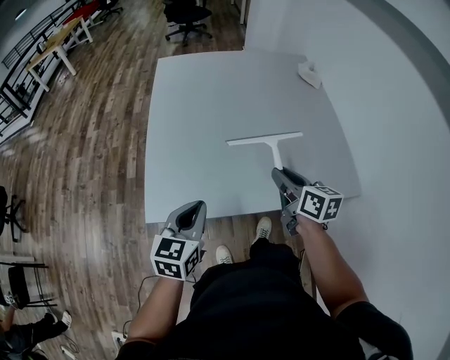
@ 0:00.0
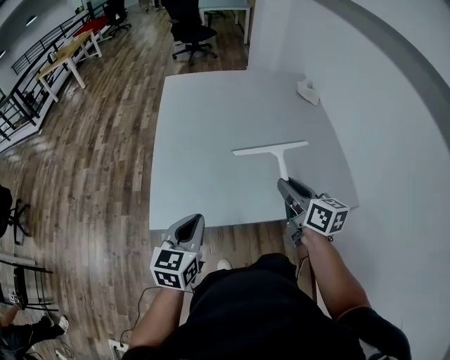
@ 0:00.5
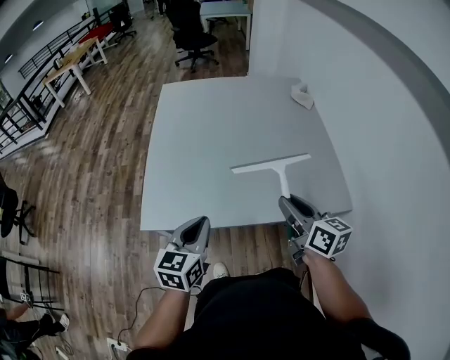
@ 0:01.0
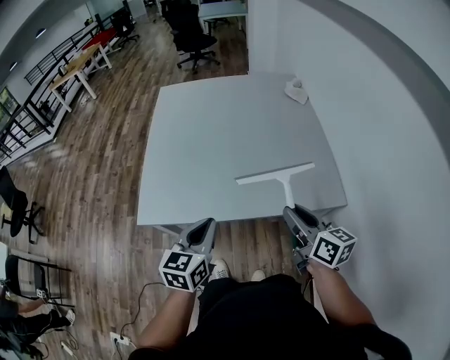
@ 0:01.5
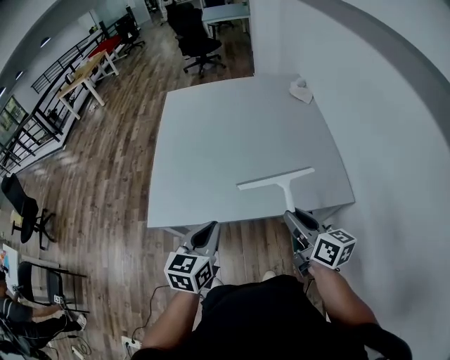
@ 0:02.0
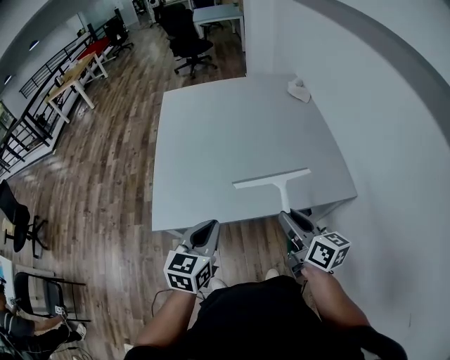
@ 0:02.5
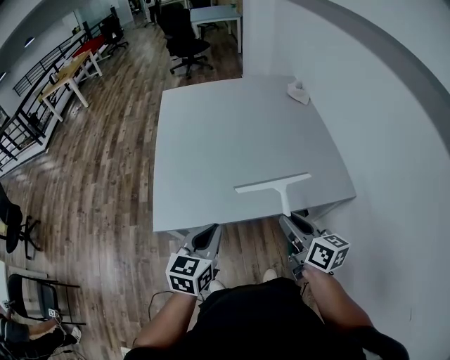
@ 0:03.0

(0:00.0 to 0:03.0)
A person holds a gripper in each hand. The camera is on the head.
0:00.0 - 0:01.5: The right gripper travels backward, to the right and upward by roughly 20 cm; the left gripper shifts about 15 cm to the right and backward.
0:01.5 - 0:03.0: The grippers both shift to the left by some 10 cm.

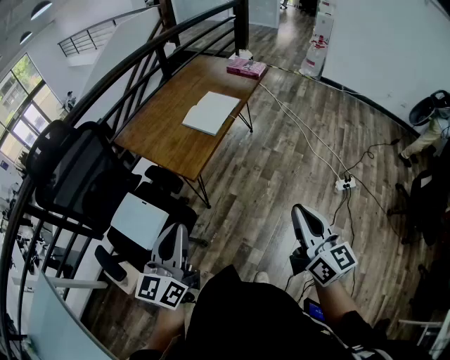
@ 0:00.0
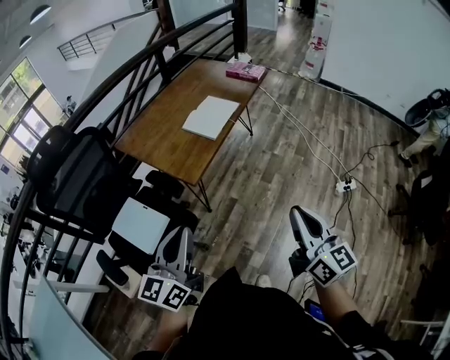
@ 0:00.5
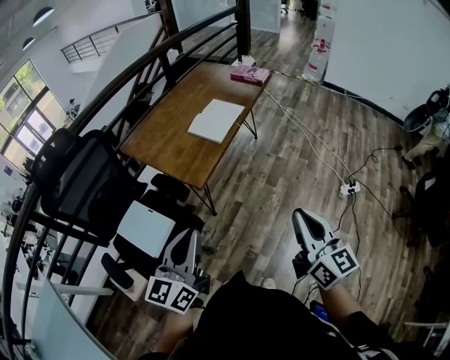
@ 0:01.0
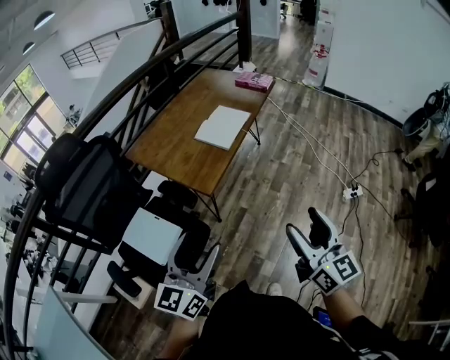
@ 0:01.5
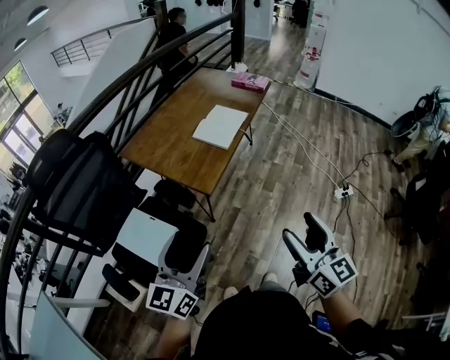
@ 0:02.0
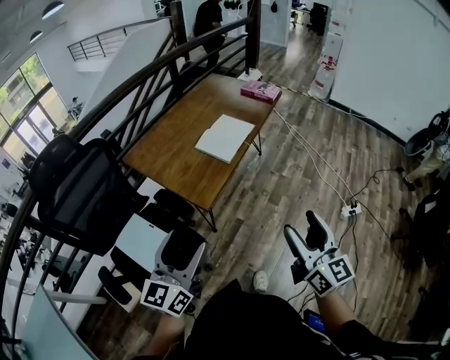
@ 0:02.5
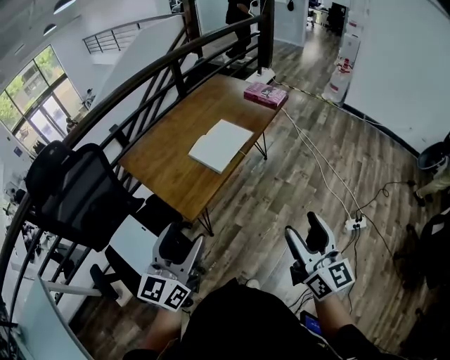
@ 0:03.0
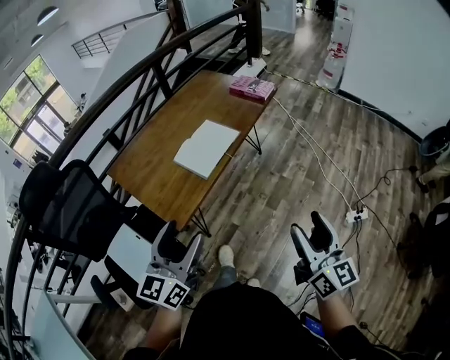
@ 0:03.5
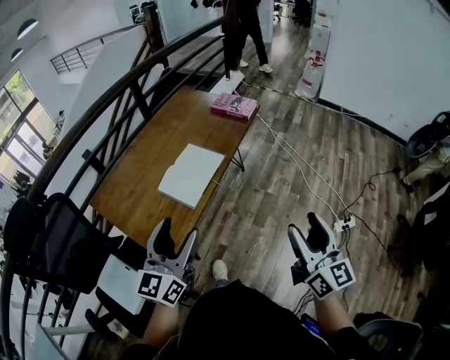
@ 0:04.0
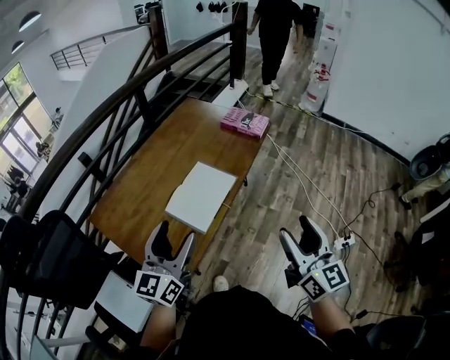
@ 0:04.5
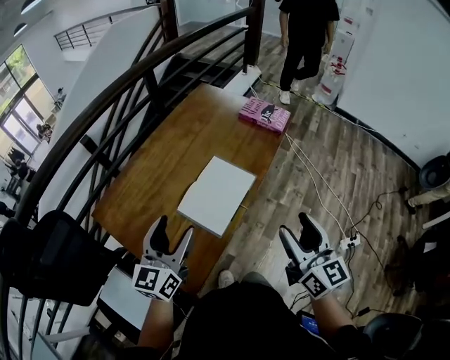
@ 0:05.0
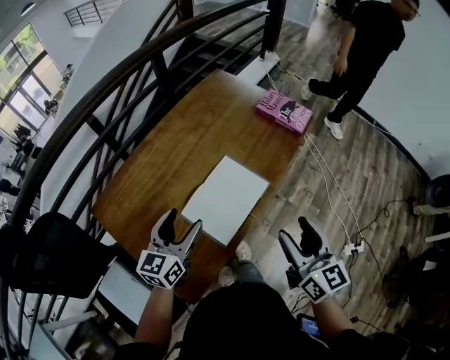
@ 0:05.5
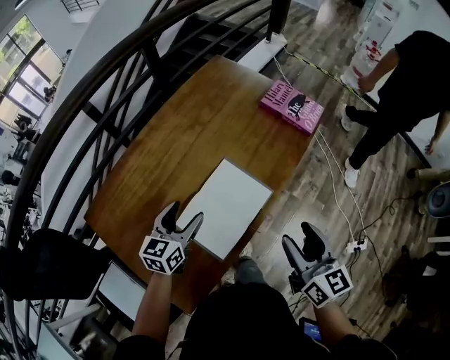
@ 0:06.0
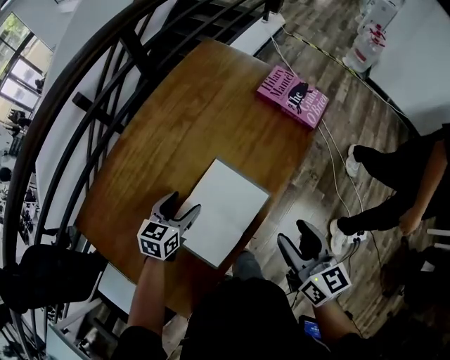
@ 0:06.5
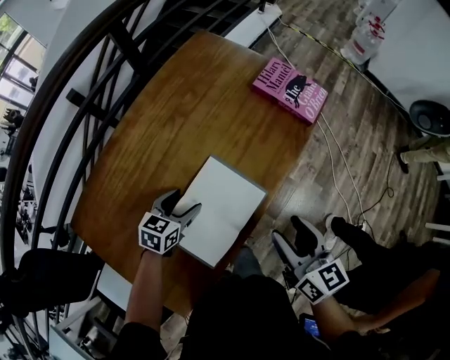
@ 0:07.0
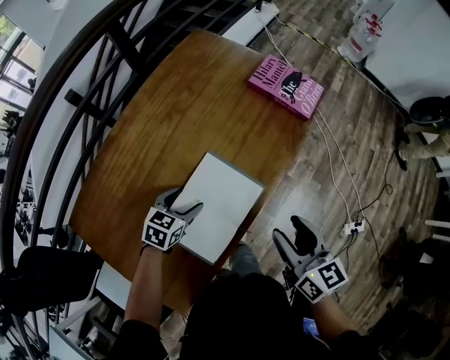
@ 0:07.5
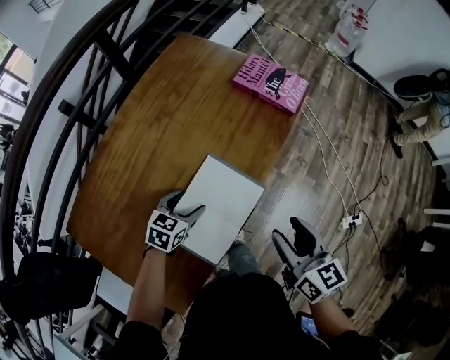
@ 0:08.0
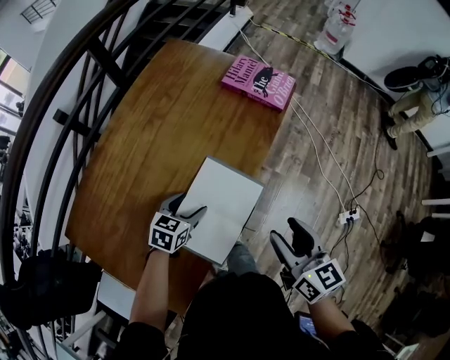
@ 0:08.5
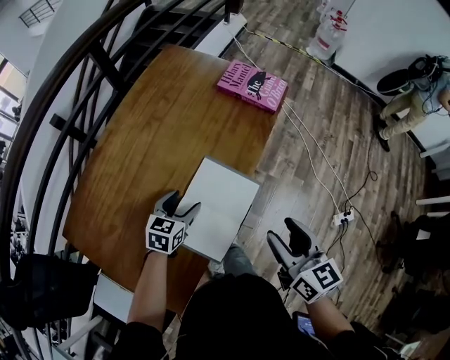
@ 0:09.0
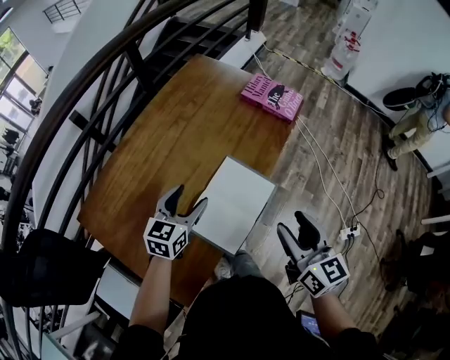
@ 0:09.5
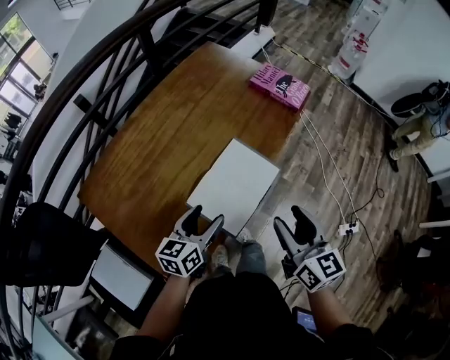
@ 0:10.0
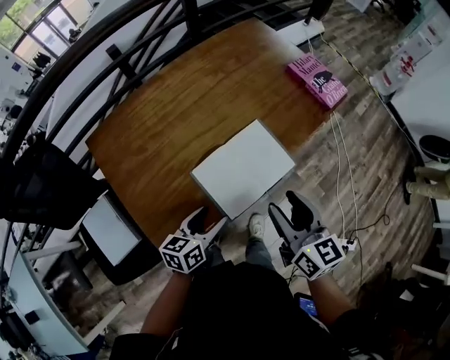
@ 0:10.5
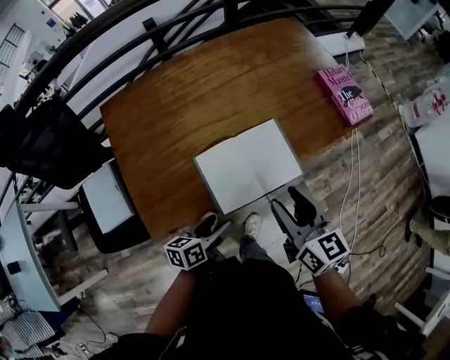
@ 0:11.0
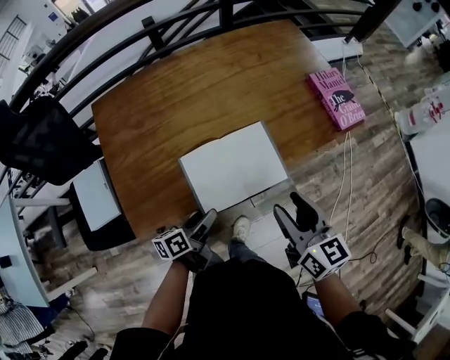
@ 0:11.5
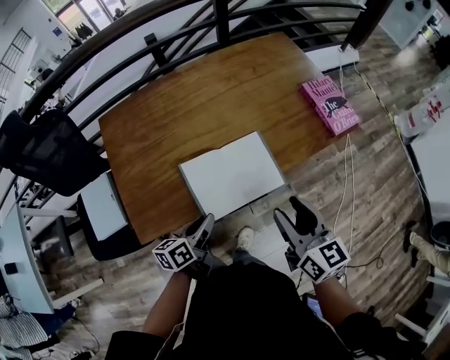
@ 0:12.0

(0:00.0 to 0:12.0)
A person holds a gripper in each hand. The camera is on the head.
0:00.0 - 0:02.0: The left gripper travels to the left by roughly 5 cm, and opens its fingers. Meanwhile the right gripper goes about 10 cm to the left, and opens.
0:02.0 - 0:04.0: The grippers both shift forward and to the right by roughly 35 cm.
0:04.0 - 0:06.0: The left gripper goes some 40 cm forward and downward, and rotates some 30 degrees, while the right gripper heads forward, to the left and downward, covering approximately 35 cm, and changes its angle by approximately 20 degrees.
0:06.0 - 0:08.0: The right gripper changes place by approximately 5 cm; the left gripper moves downward and to the right, roughly 15 cm, and swivels some 30 degrees.
0:08.0 - 0:10.0: The left gripper shifts approximately 20 cm backward and upward, and changes its angle by some 40 degrees, while the right gripper travels backward and upward by approximately 10 cm.
0:10.0 - 0:12.0: The right gripper ends up roughly 10 cm from where it was, and changes its angle by about 30 degrees, while the left gripper changes its angle by some 40 degrees, and closes up.

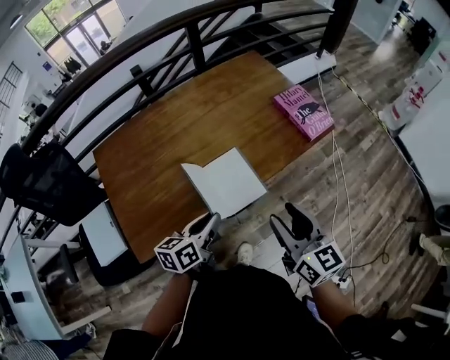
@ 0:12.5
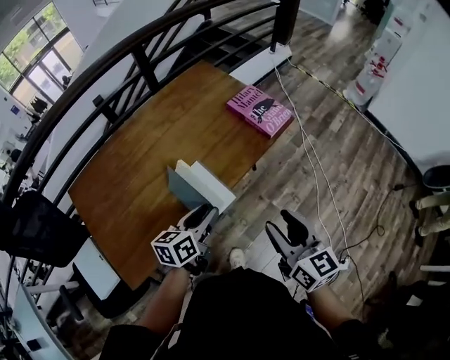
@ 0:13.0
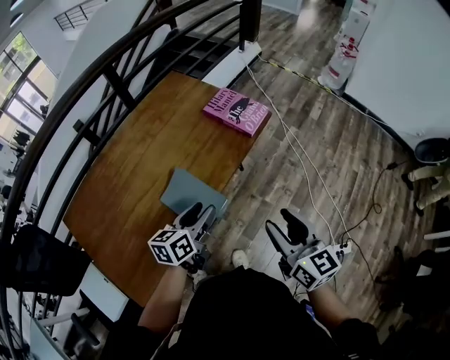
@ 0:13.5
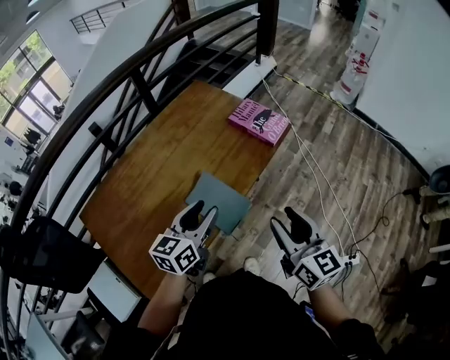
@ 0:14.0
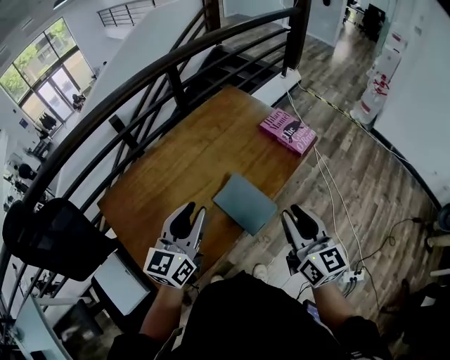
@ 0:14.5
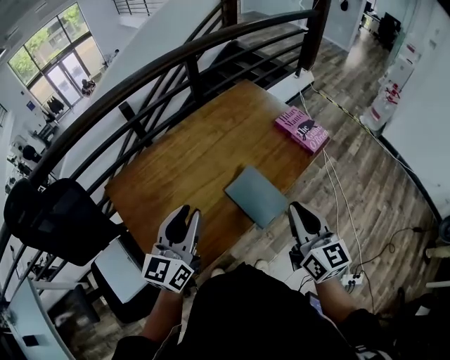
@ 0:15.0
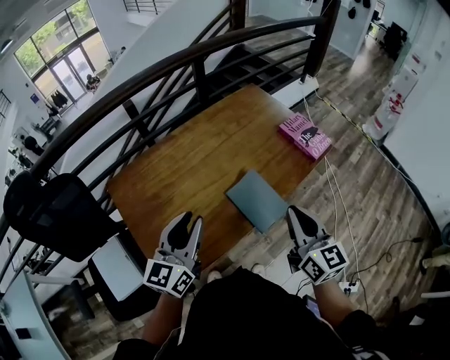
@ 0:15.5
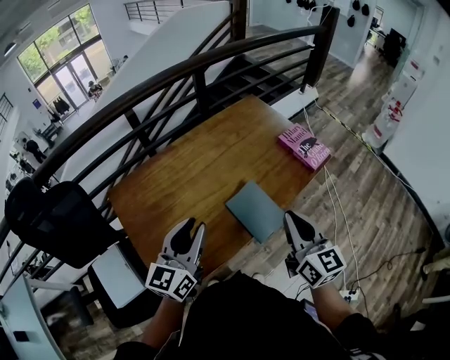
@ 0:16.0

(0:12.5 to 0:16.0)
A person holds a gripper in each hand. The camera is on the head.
0:12.5 - 0:14.5: The left gripper heads upward and to the left, covering some 20 cm, and turns by roughly 40 degrees, while the right gripper heads upward, covering about 5 cm, goes to the right and returns, approximately 10 cm each way, and swivels some 20 degrees.
0:14.5 - 0:16.0: The left gripper goes some 5 cm to the left. Meanwhile the right gripper shifts by approximately 5 cm.

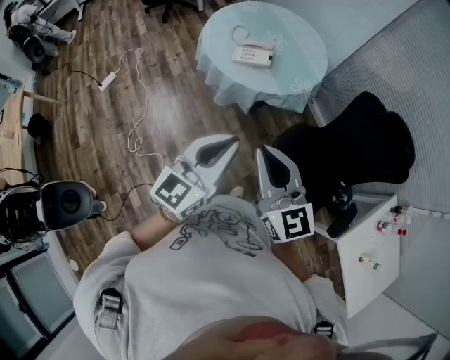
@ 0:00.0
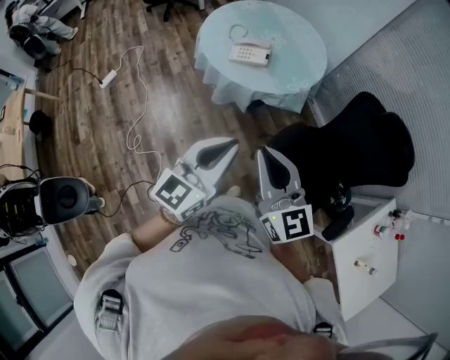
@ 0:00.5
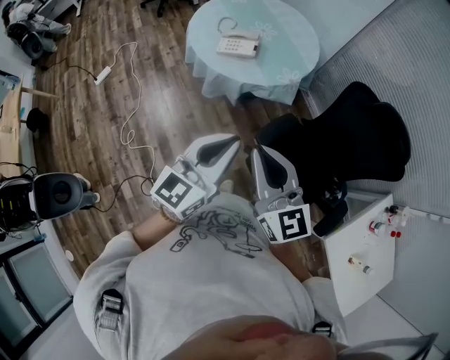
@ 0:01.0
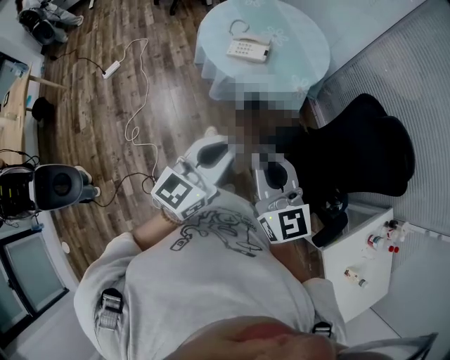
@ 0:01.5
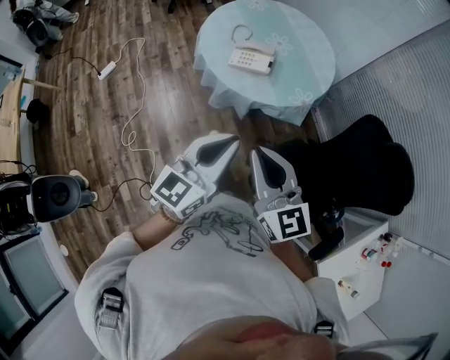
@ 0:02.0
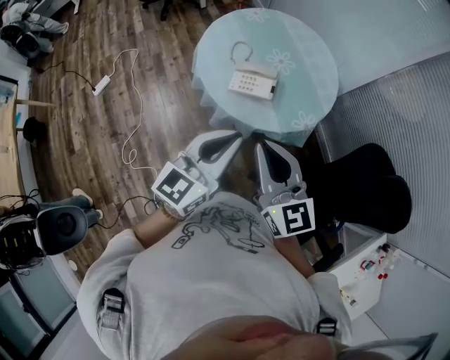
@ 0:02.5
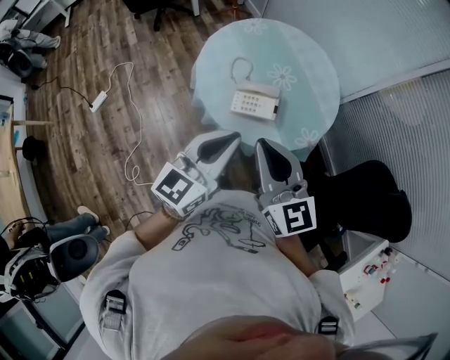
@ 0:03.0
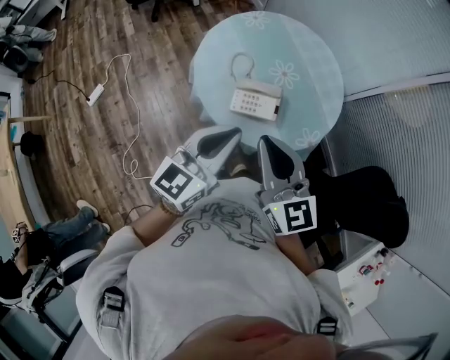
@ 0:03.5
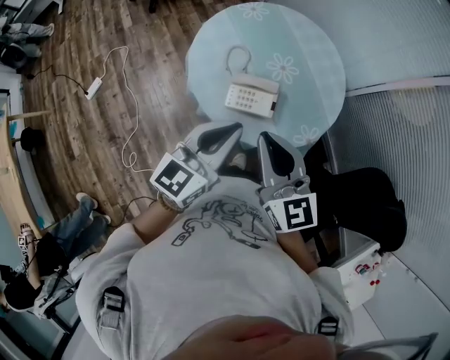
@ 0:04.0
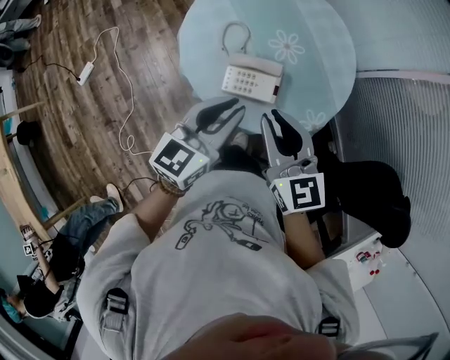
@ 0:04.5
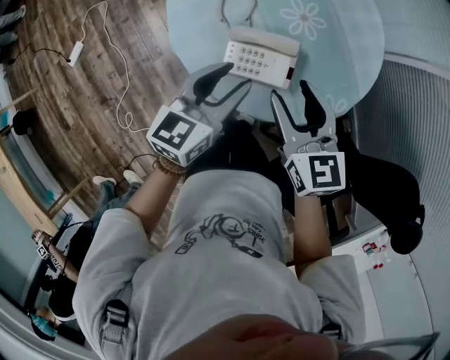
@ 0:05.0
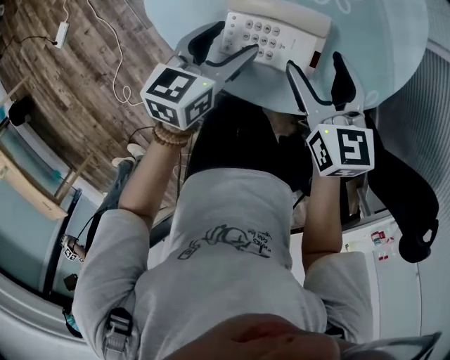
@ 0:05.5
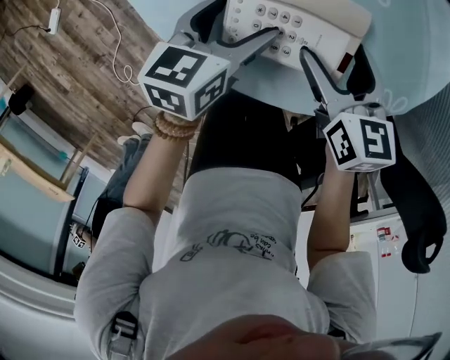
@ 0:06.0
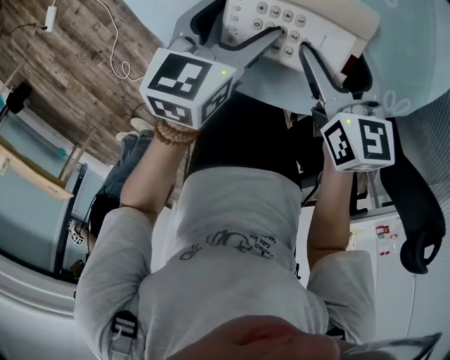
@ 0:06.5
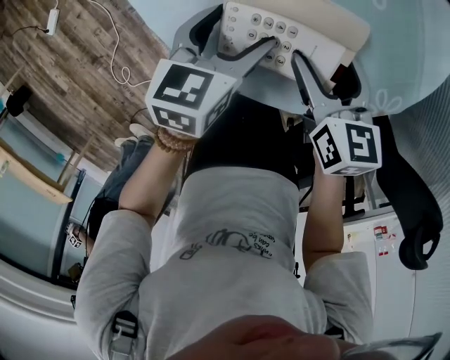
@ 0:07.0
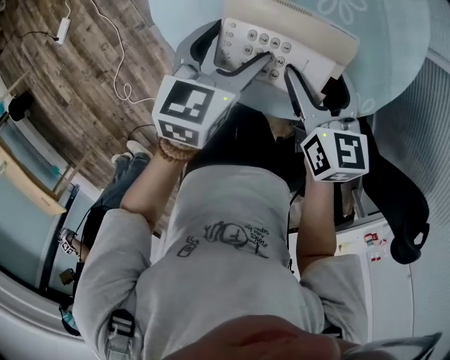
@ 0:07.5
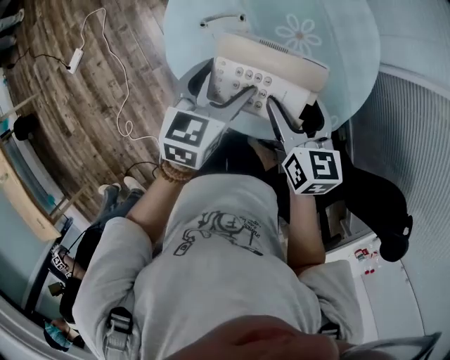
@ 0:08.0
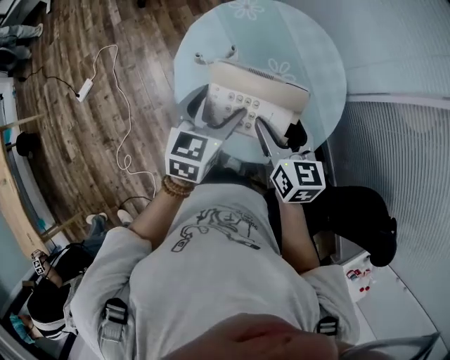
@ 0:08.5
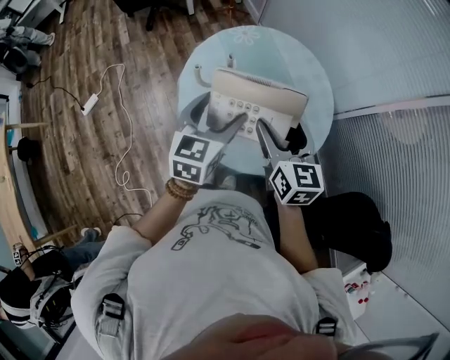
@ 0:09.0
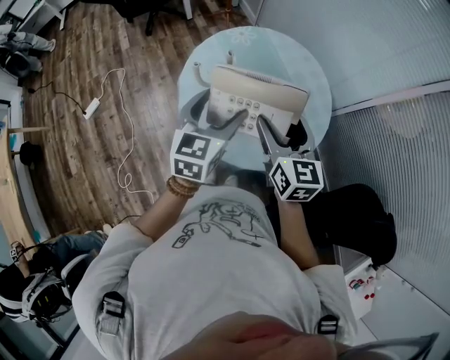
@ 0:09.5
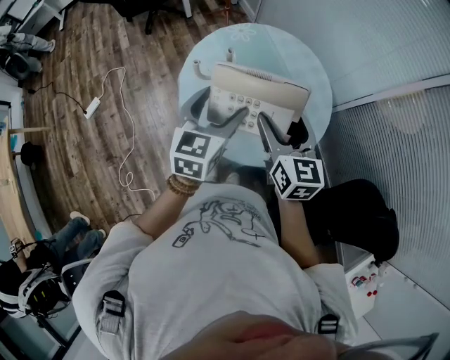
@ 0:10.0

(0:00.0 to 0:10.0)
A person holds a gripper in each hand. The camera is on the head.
0:00.0 - 0:02.0: The left gripper is displaced forward and to the right by some 15 cm. The right gripper heads forward, downward and to the right, covering some 15 cm.
0:02.0 - 0:04.0: Both grippers move forward, some 35 cm.
0:04.0 - 0:06.0: Both grippers travel together downward and forward, approximately 50 cm. The left gripper tilts its fingers approximately 30 degrees downward, and opens up; the right gripper points its fingers approximately 30 degrees further downward, and opens its fingers.
0:06.0 - 0:08.0: Both grippers travel together upward, approximately 25 cm.
0:08.0 - 0:10.0: The two grippers go some 25 cm upward and backward. The left gripper changes its angle by approximately 20 degrees, while the right gripper changes its angle by some 20 degrees.
